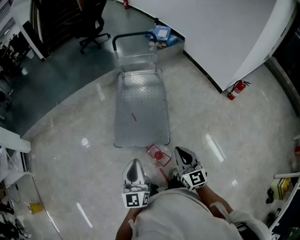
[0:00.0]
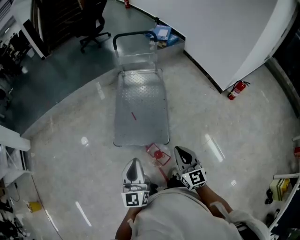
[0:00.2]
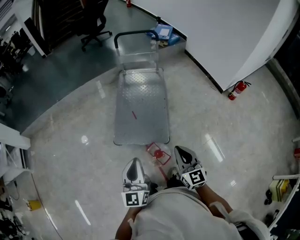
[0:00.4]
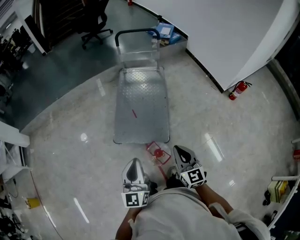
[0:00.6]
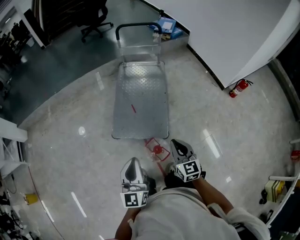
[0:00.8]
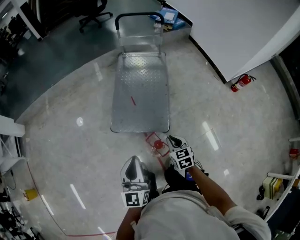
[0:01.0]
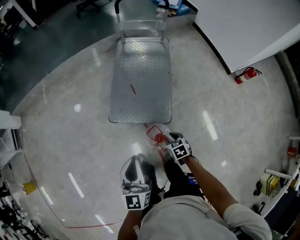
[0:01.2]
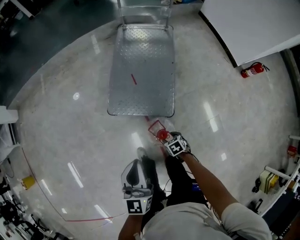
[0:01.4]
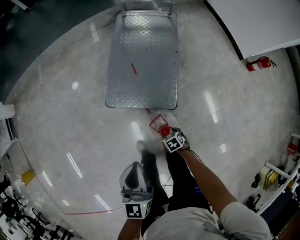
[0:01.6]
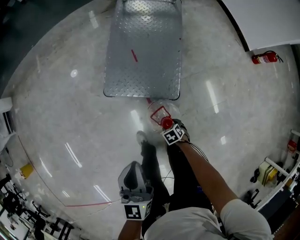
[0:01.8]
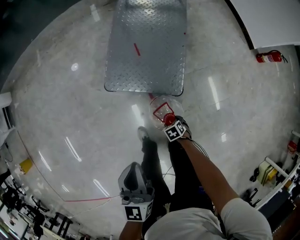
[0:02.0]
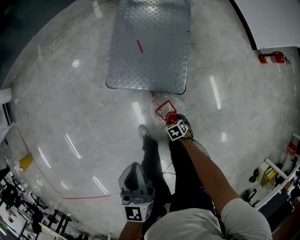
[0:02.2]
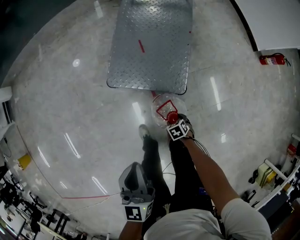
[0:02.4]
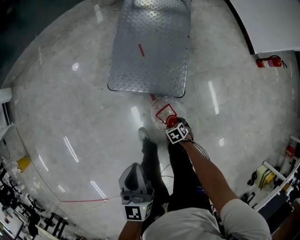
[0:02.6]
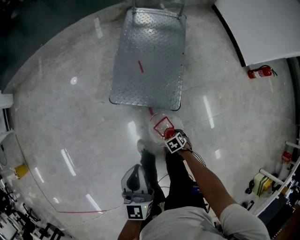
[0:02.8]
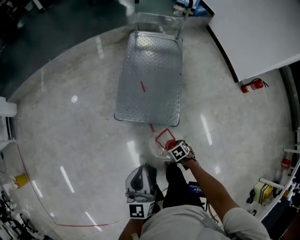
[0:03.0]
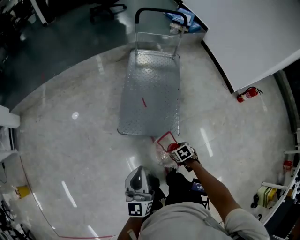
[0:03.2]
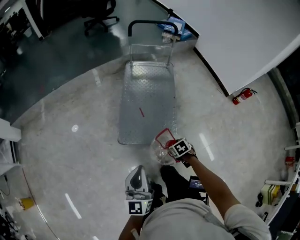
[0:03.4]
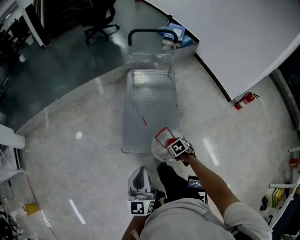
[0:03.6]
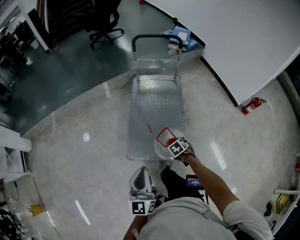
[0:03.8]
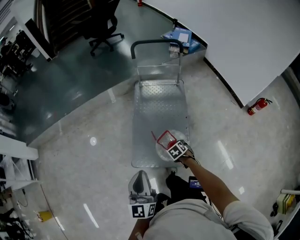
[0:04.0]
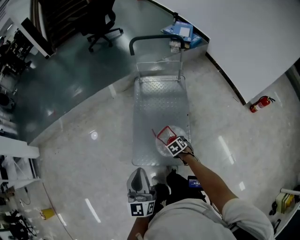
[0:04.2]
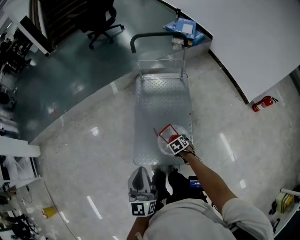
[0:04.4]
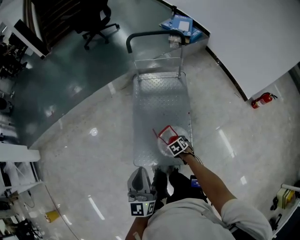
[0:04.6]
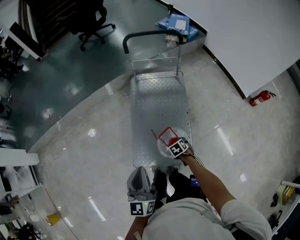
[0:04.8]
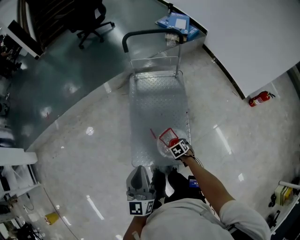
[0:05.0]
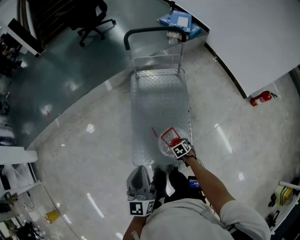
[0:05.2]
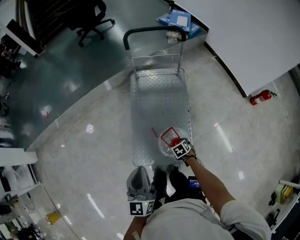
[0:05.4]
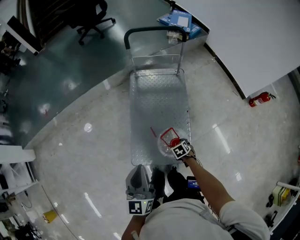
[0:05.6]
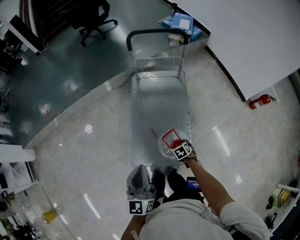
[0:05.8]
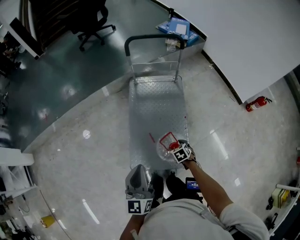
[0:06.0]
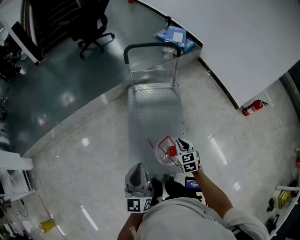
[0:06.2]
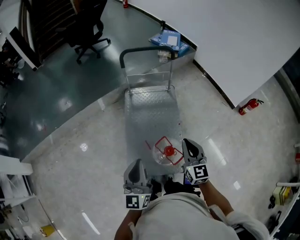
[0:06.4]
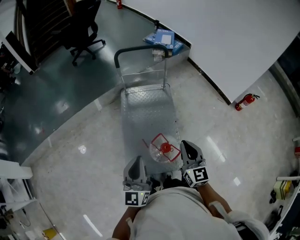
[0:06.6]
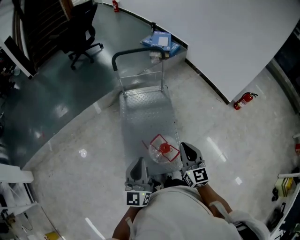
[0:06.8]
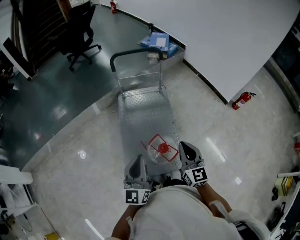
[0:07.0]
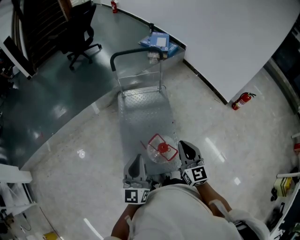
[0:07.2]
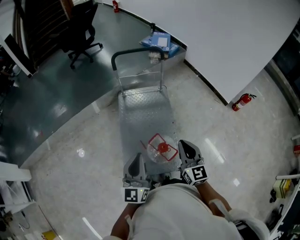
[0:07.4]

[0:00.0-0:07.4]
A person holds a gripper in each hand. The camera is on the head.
0:00.0 to 0:01.4: The right gripper shifts some 40 cm downward, angles its fingers downward, by some 60 degrees, and opens its fingers. The left gripper travels downward by roughly 10 cm.
0:01.4 to 0:03.0: The right gripper goes downward and returns, roughly 15 cm each way. The left gripper moves roughly 10 cm downward and comes back.
0:03.0 to 0:04.4: The right gripper changes place by approximately 40 cm; the left gripper changes place by roughly 30 cm.
0:04.4 to 0:06.0: The left gripper shifts by approximately 10 cm.
0:06.0 to 0:07.4: The right gripper goes about 35 cm upward, tilts its fingers some 60 degrees upward, and closes; the left gripper heads to the right and upward, covering roughly 10 cm.

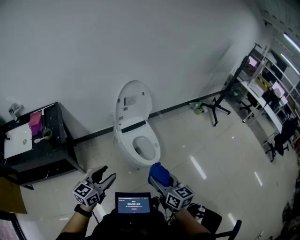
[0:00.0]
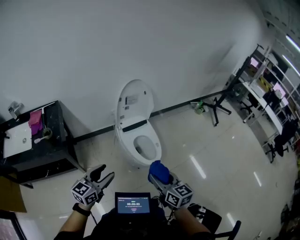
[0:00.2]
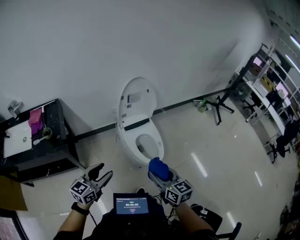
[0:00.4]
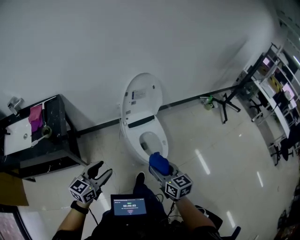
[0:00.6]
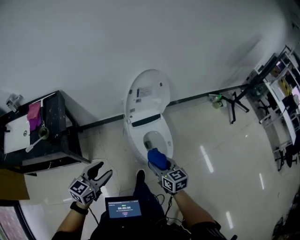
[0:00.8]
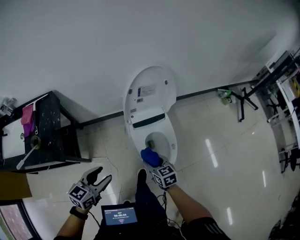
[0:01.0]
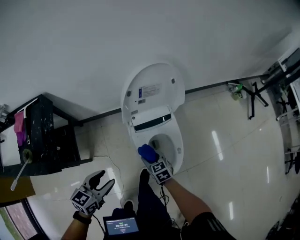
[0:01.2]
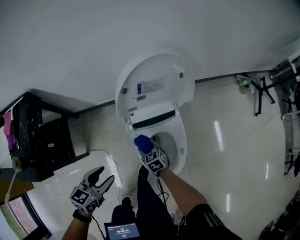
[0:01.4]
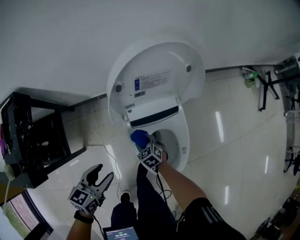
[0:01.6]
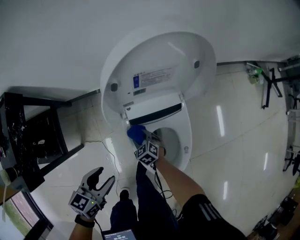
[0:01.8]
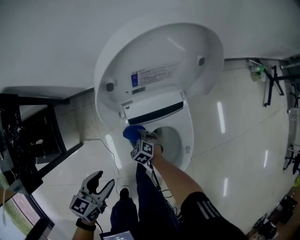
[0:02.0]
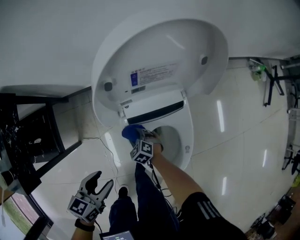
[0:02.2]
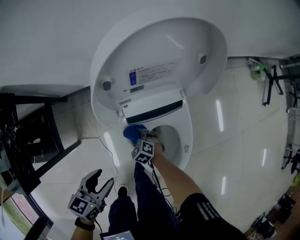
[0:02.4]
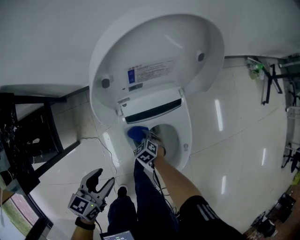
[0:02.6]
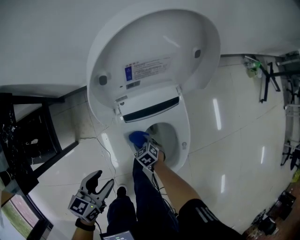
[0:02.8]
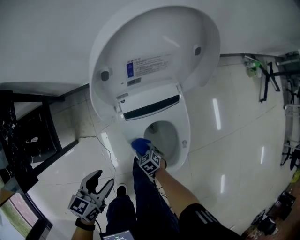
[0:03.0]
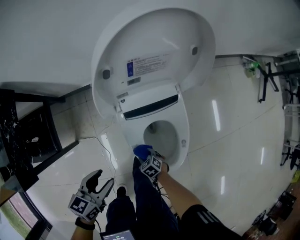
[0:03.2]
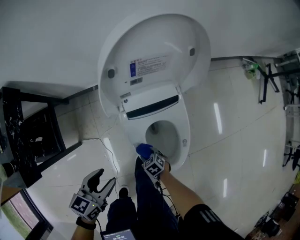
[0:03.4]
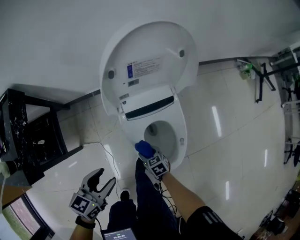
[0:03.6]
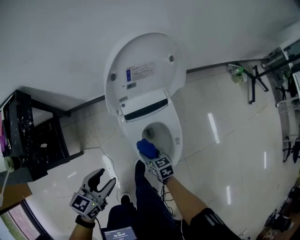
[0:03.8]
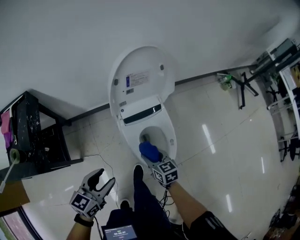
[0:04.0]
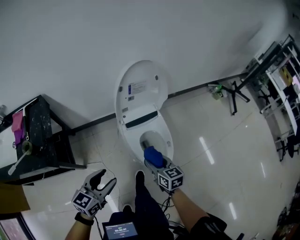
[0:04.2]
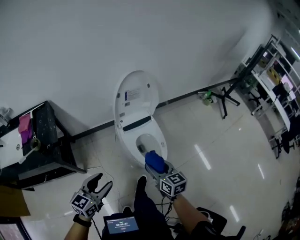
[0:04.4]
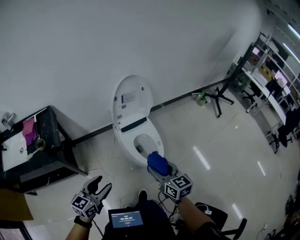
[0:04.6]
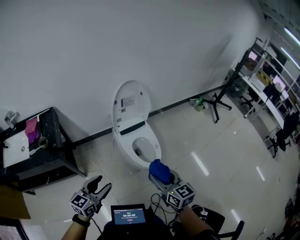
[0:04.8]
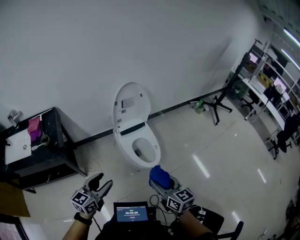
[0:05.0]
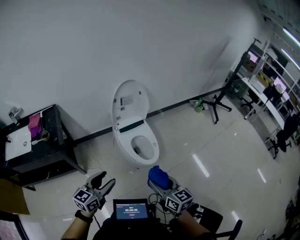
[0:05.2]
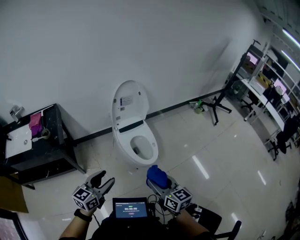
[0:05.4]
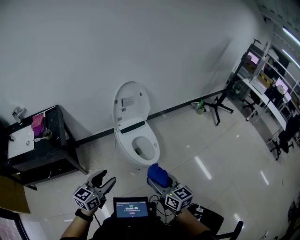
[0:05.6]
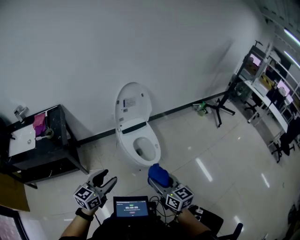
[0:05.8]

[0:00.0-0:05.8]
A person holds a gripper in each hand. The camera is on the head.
0:00.0 to 0:01.4: The right gripper travels downward and forward by some 70 cm, and tilts its fingers some 40 degrees downward; the left gripper travels forward and downward by some 50 cm, and swivels some 30 degrees.
0:01.4 to 0:02.8: The right gripper is displaced downward by some 20 cm. Meanwhile the left gripper is displaced downward by some 10 cm.
0:02.8 to 0:04.4: The left gripper moves about 40 cm, and swivels approximately 30 degrees, while the right gripper moves upward, about 50 cm, and tilts its fingers about 40 degrees upward.
0:04.4 to 0:05.8: The right gripper travels backward and upward by roughly 25 cm, while the left gripper is displaced backward, upward and to the right by roughly 20 cm.

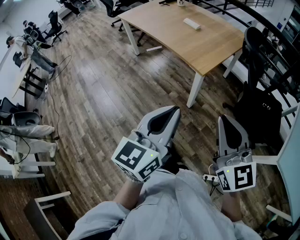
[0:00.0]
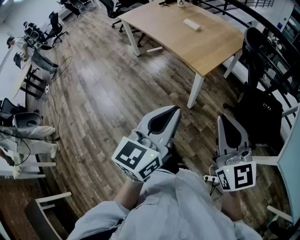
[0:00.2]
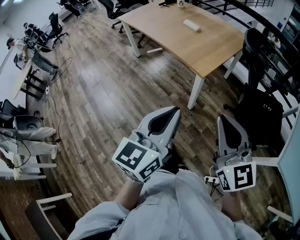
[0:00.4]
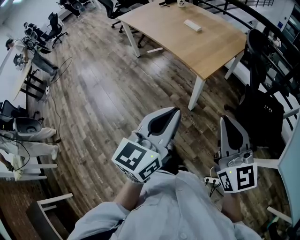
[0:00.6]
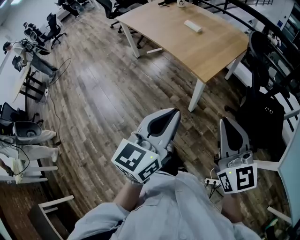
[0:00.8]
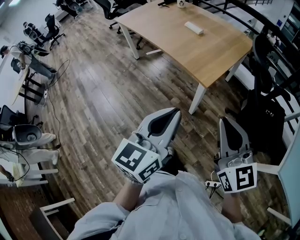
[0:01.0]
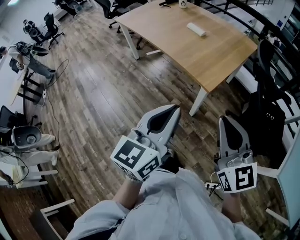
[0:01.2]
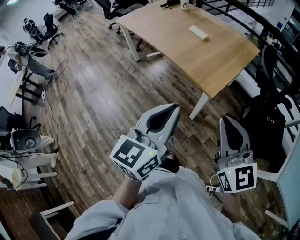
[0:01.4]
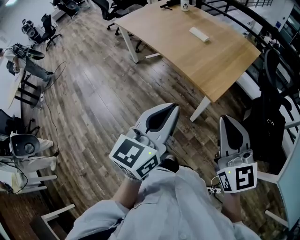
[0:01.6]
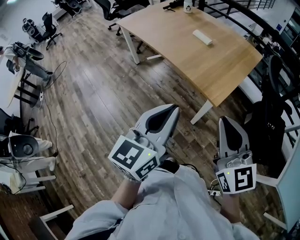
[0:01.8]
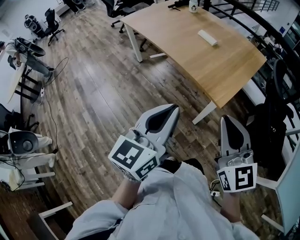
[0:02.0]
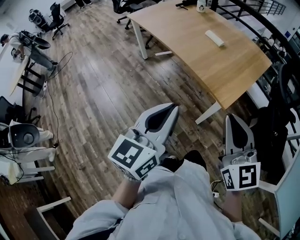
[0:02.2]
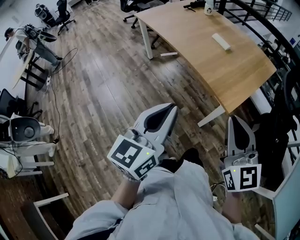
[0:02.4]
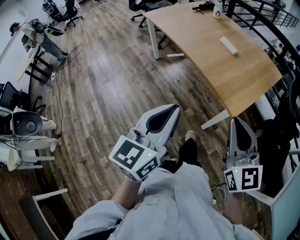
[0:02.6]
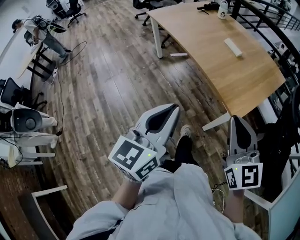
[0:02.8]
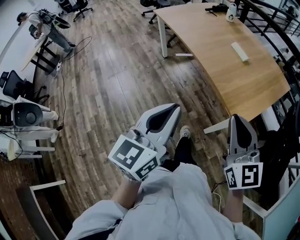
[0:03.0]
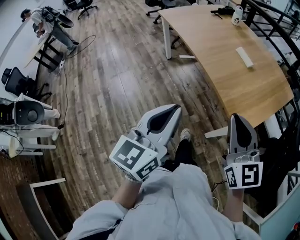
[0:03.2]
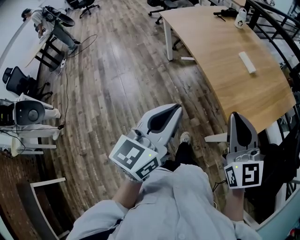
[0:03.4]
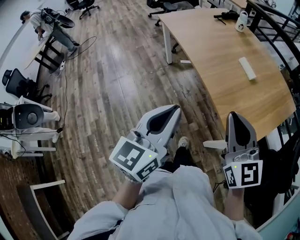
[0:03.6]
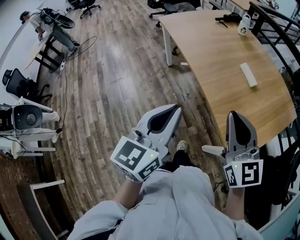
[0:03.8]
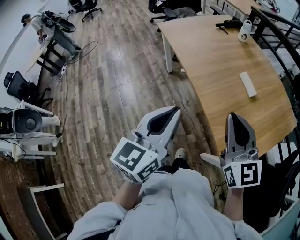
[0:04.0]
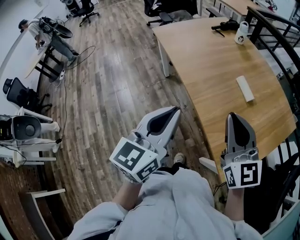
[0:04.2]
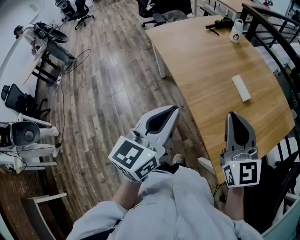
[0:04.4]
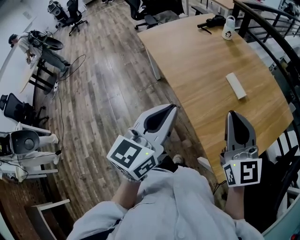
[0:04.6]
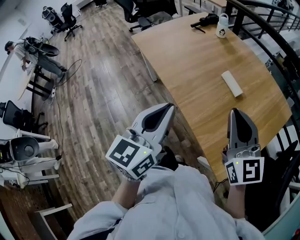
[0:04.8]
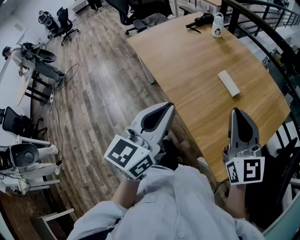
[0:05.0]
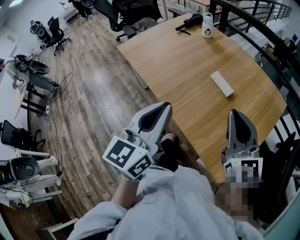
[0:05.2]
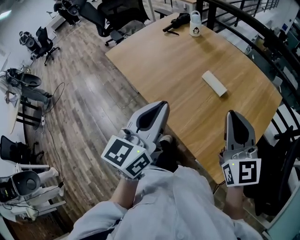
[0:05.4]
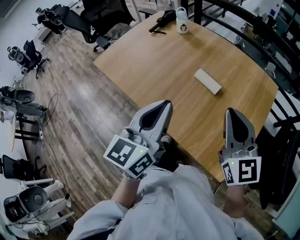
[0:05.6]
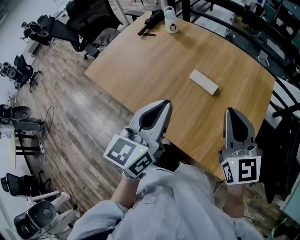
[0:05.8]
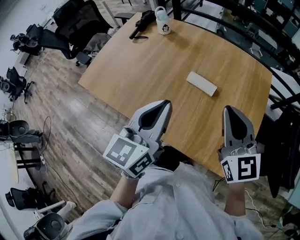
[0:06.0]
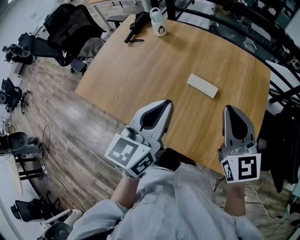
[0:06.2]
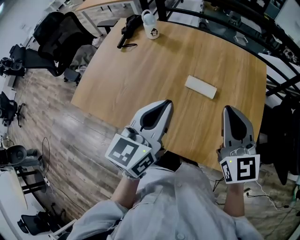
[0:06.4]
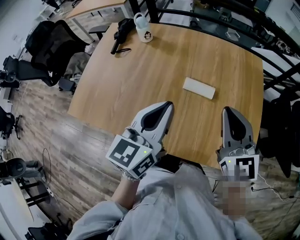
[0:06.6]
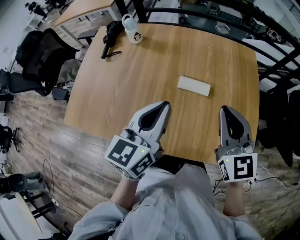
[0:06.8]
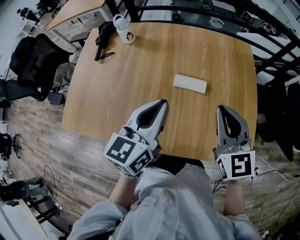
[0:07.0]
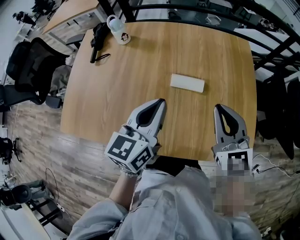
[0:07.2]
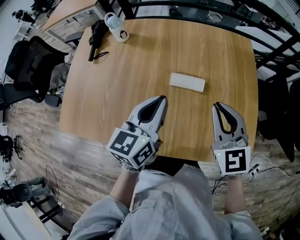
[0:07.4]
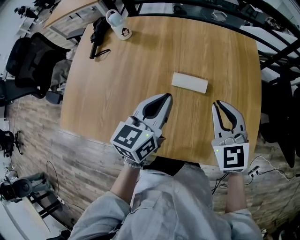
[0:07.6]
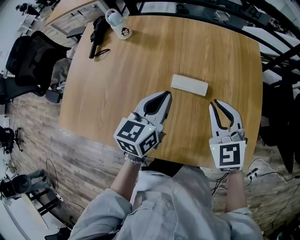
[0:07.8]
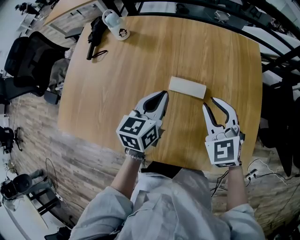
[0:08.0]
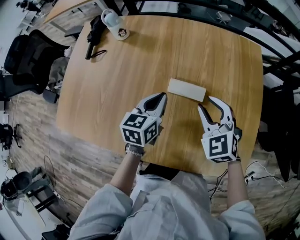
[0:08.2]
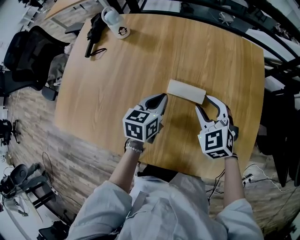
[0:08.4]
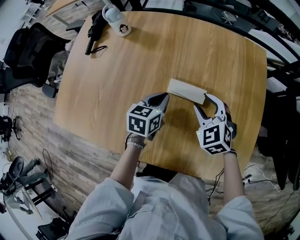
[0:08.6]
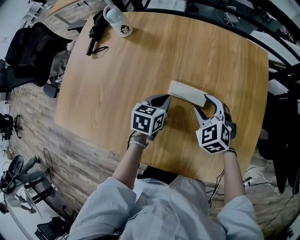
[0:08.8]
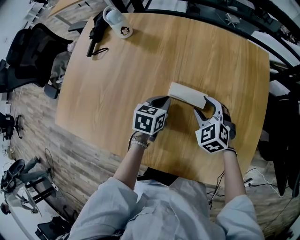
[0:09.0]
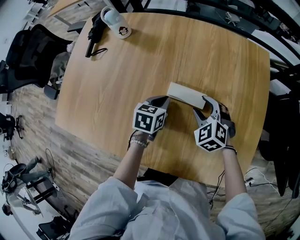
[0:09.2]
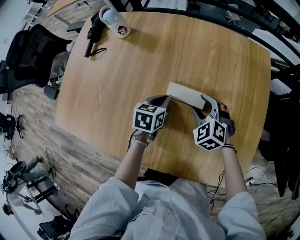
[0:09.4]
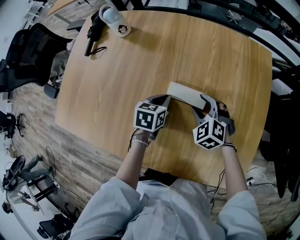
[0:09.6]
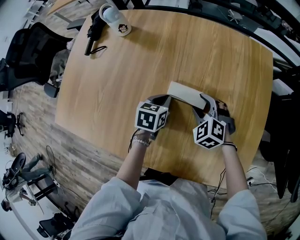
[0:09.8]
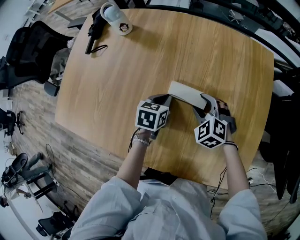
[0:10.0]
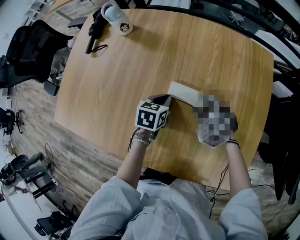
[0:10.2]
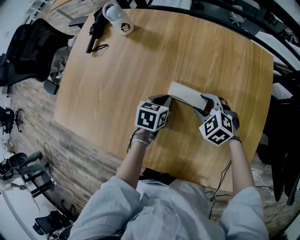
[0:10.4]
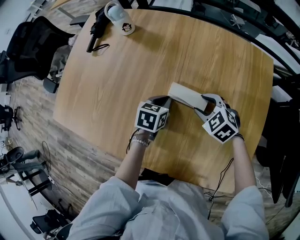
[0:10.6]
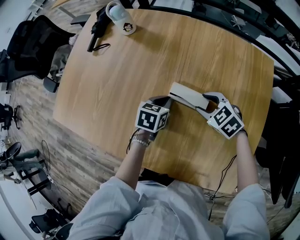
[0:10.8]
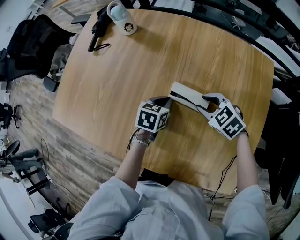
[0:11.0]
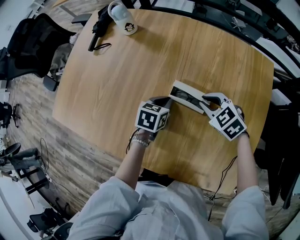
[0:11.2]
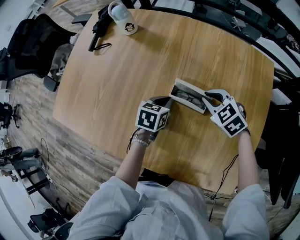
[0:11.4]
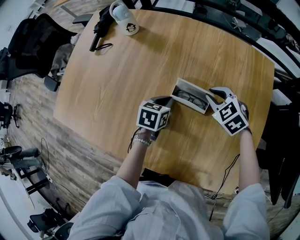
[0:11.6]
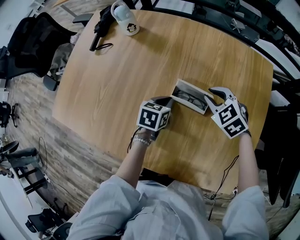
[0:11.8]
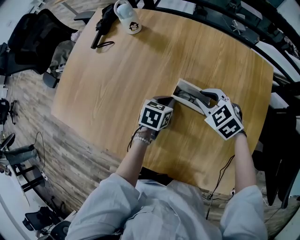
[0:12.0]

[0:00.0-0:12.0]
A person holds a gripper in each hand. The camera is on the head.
0:00.0 to 0:01.6: Both grippers move forward and to the left, about 20 cm.
0:01.6 to 0:03.0: The left gripper travels to the left and forward by some 15 cm. The right gripper shifts about 15 cm forward and to the left.
0:03.0 to 0:04.4: The grippers both shift forward by about 30 cm.
0:04.4 to 0:06.0: The left gripper ends up approximately 25 cm from where it was, and turns by about 30 degrees; the right gripper ends up roughly 20 cm from where it was, and swivels some 30 degrees.
0:06.0 to 0:07.6: The right gripper heads downward and forward, covering some 10 cm, and turns by roughly 30 degrees; the left gripper goes approximately 15 cm forward and downward, and turns by some 20 degrees.
0:07.6 to 0:09.0: The left gripper travels downward by some 20 cm, and tips its fingers downward by roughly 30 degrees; the right gripper travels downward and forward by some 20 cm, changes its angle by about 30 degrees, and opens.
0:09.0 to 0:10.4: There are only small adjustments of the grippers.
0:10.4 to 0:12.0: The right gripper travels upward by about 5 cm, and closes its fingers.
